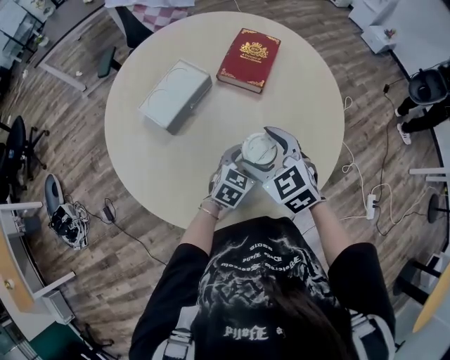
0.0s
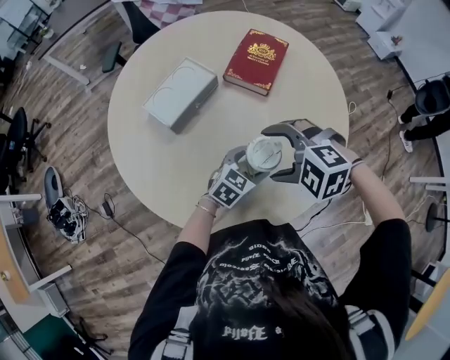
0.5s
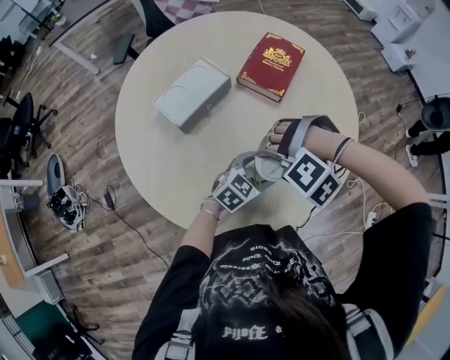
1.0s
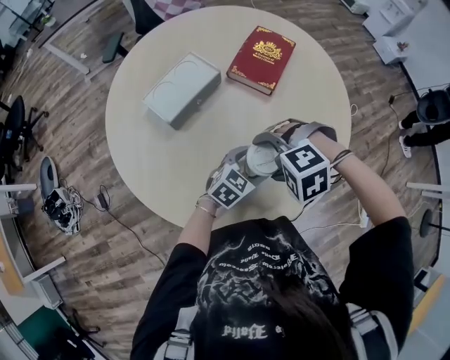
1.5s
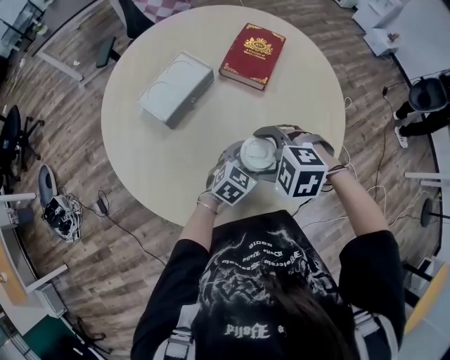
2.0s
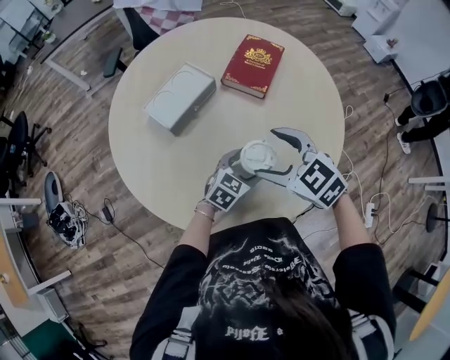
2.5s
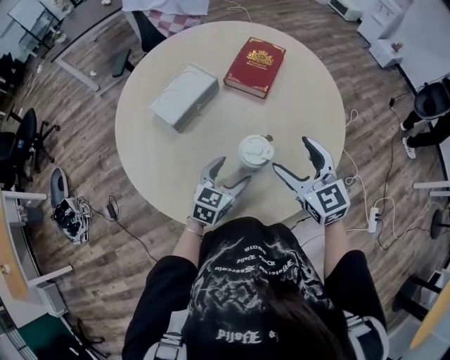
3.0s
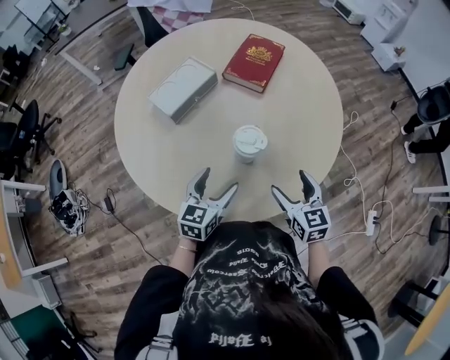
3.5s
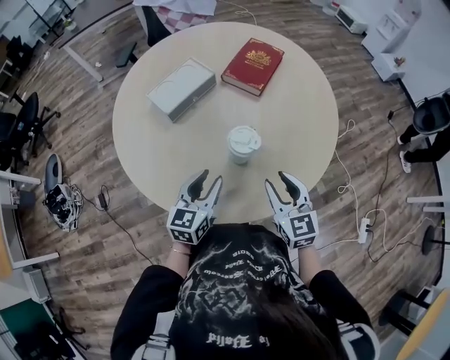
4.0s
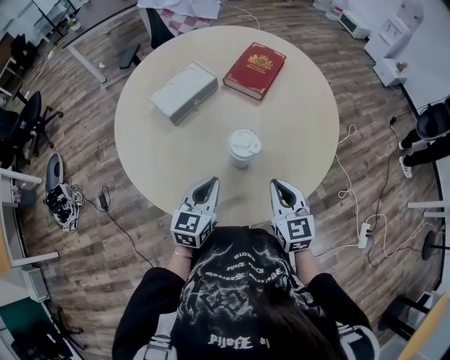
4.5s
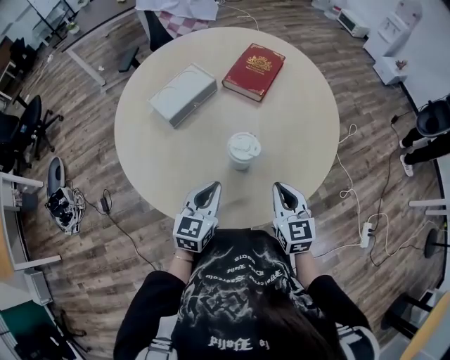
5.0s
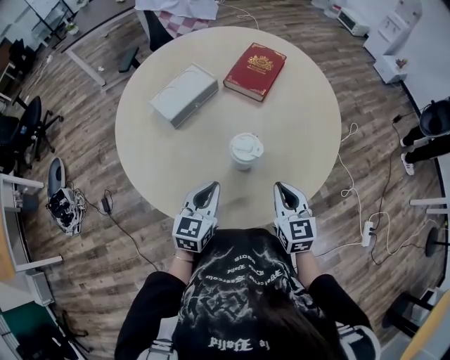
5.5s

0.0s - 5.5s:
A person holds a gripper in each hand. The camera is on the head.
0.0s - 2.0s: The right gripper rotates approximately 50 degrees.
2.0s - 3.5s: The left gripper travels backward, to the left and upward by about 15 cm, and swivels some 30 degrees; the right gripper heads to the right and backward, covering approximately 15 cm, and angles its fingers upward, by roughly 40 degrees.
3.5s - 5.5s: The left gripper closes; the right gripper closes.

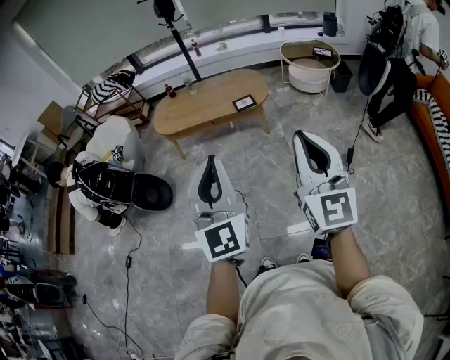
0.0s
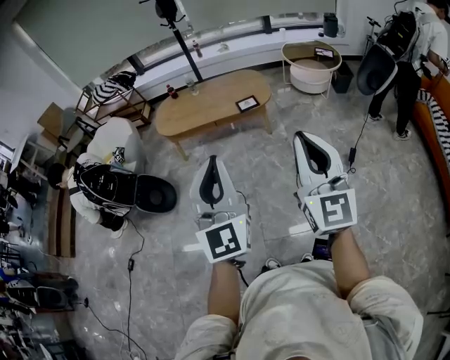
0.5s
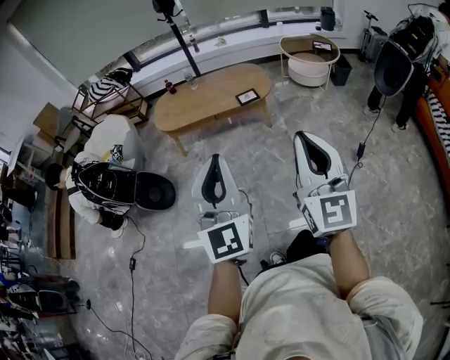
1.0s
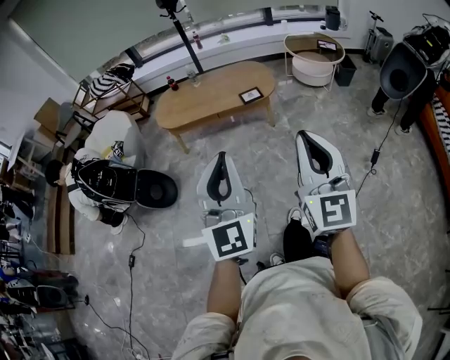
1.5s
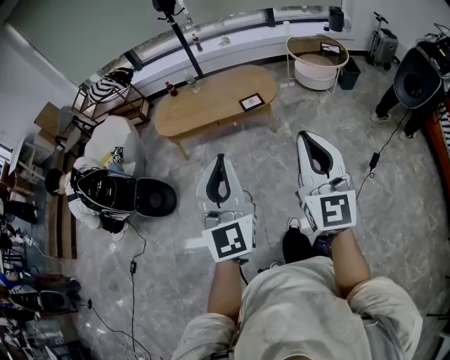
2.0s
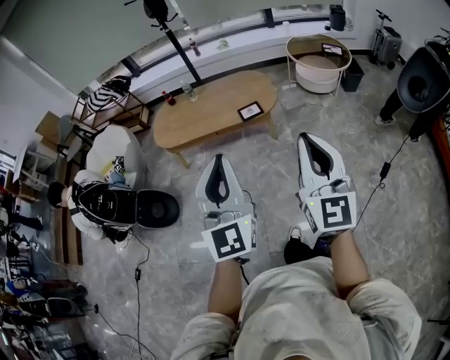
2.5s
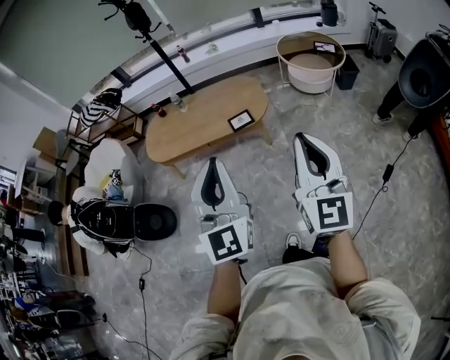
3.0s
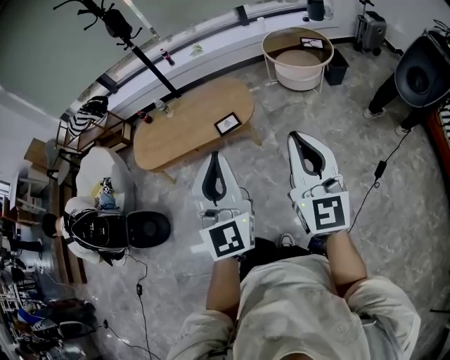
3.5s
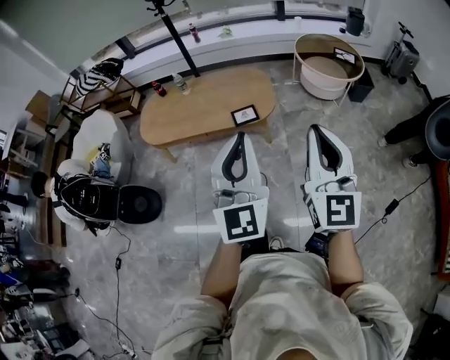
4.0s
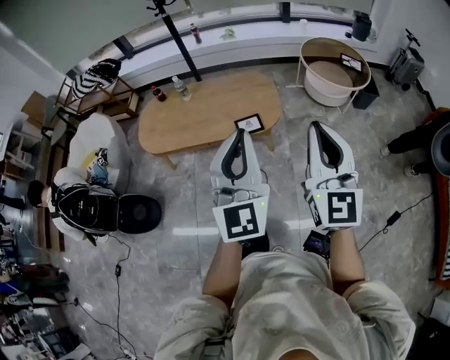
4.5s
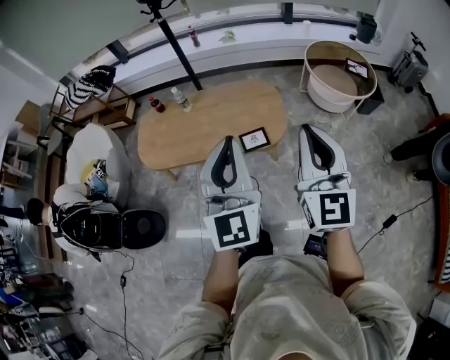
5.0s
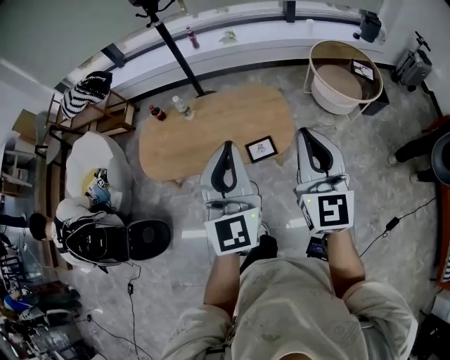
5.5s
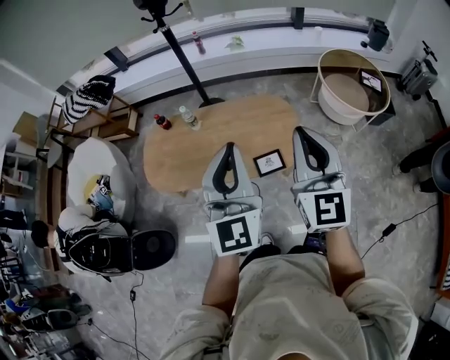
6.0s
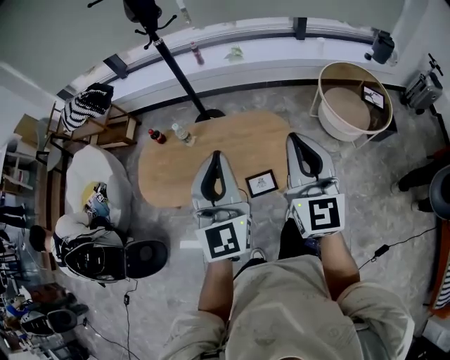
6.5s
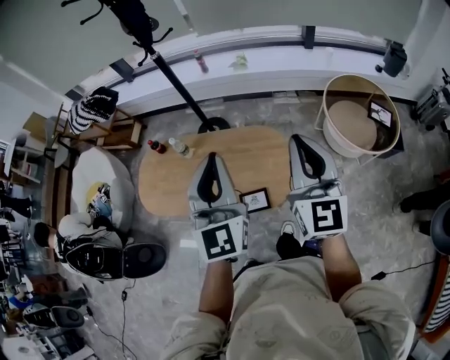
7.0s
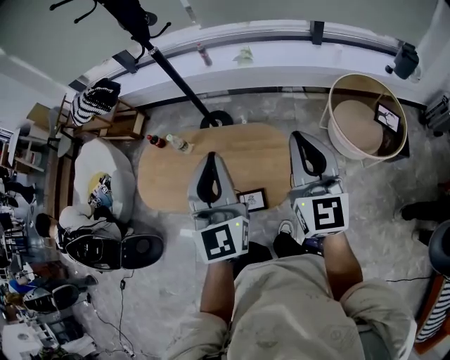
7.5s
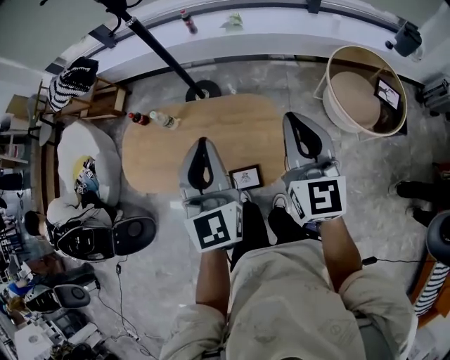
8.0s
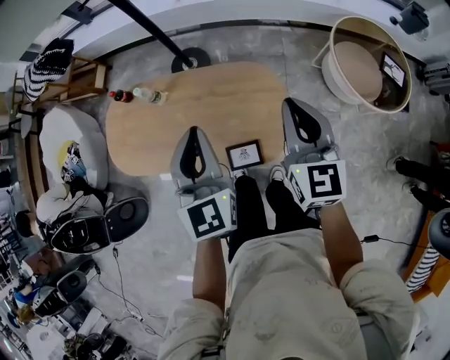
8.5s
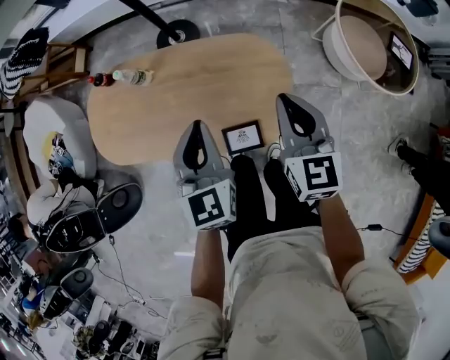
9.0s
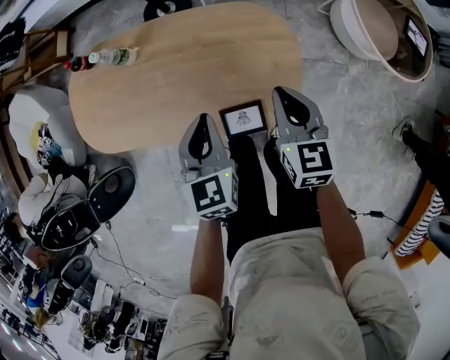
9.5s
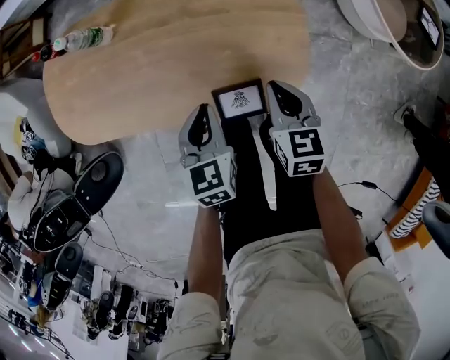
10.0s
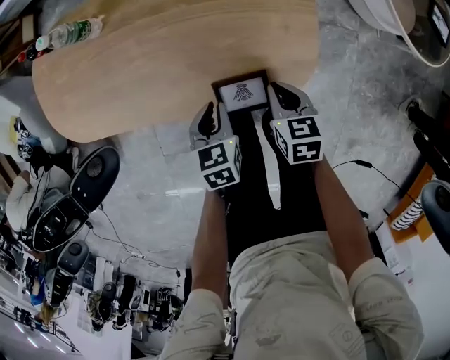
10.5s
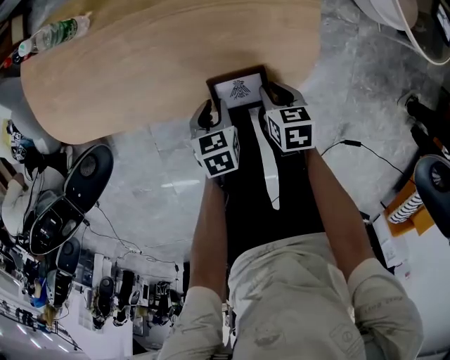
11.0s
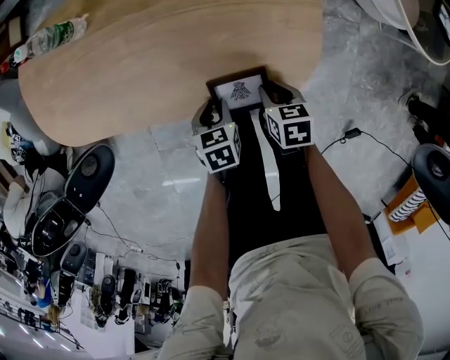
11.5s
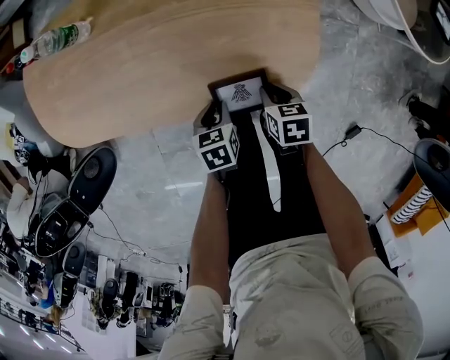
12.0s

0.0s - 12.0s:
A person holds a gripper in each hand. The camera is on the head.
0.0s - 2.0s: The grippers both shift forward by some 10 cm.
2.0s - 4.0s: Both grippers travel together forward and to the right, roughly 30 cm.
4.0s - 6.0s: The two grippers go approximately 40 cm forward and to the left.
6.0s - 8.0s: The two grippers go roughly 25 cm forward and to the right.
8.0s - 10.0s: Both grippers travel together downward, roughly 40 cm. The left gripper tips its fingers downward by roughly 40 degrees; the right gripper angles its fingers downward, by approximately 40 degrees.
10.0s - 12.0s: The two grippers go about 20 cm downward and backward. The right gripper rotates about 30 degrees; the left gripper turns by about 30 degrees.

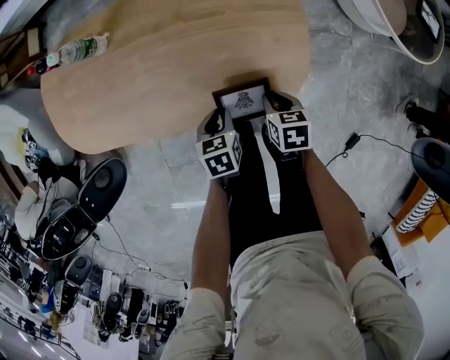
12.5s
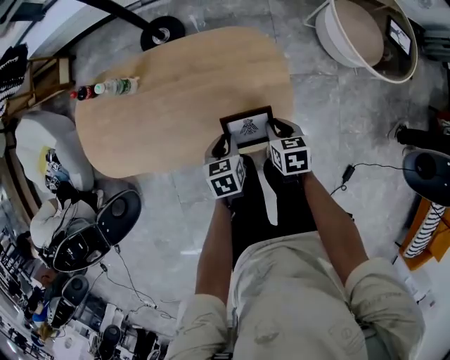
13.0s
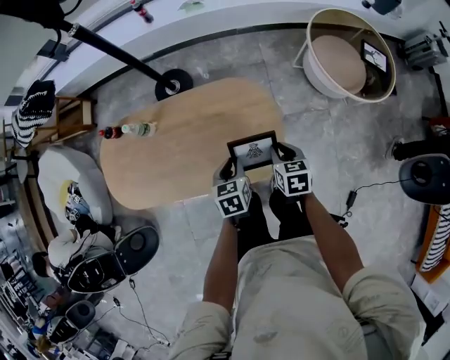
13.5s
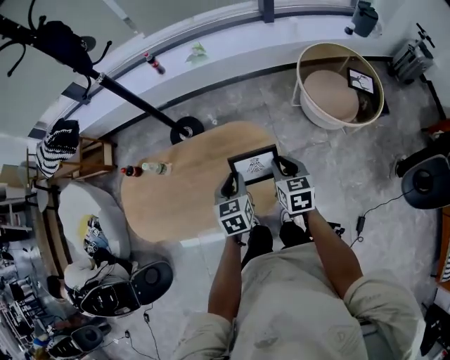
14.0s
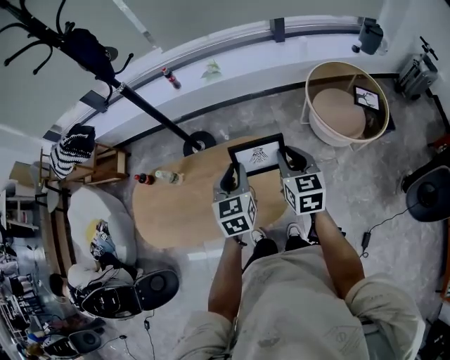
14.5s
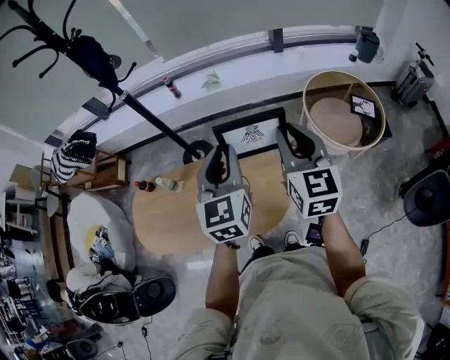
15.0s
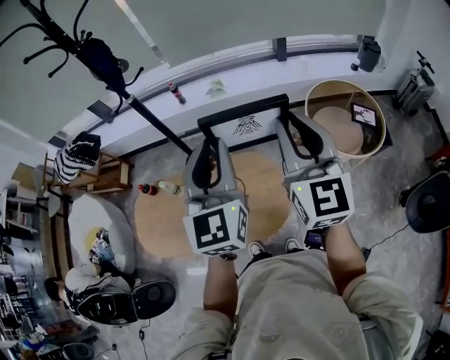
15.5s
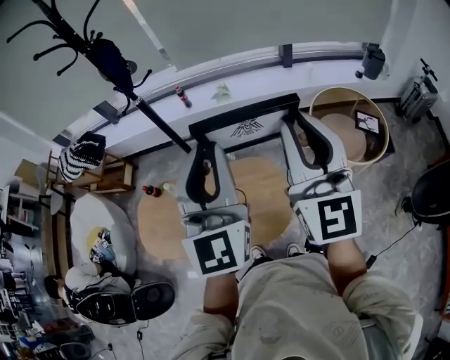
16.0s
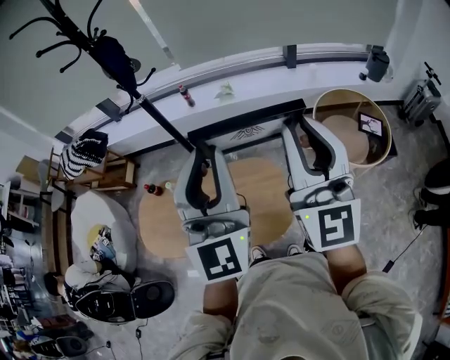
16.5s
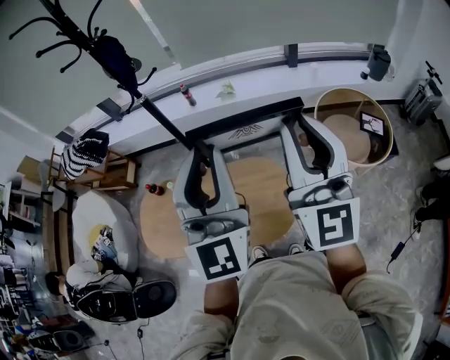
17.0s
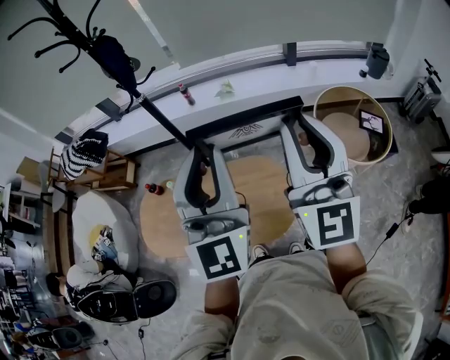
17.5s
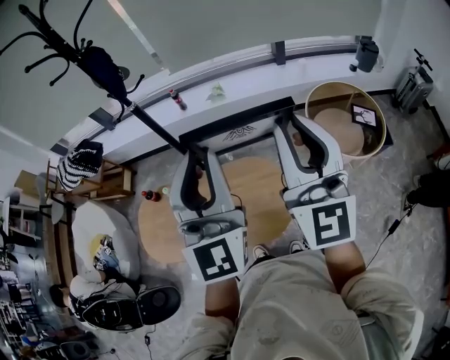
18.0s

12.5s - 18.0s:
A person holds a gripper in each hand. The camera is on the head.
12.5s - 14.5s: Both grippers move upward, about 40 cm. The right gripper tilts its fingers roughly 40 degrees upward, while the left gripper angles its fingers upward, by some 40 degrees.
14.5s - 16.0s: Both grippers move upward, roughly 30 cm. The right gripper tilts its fingers about 40 degrees upward. Meanwhile the left gripper tips its fingers upward by some 40 degrees.
16.0s - 18.0s: The grippers make only small movements.

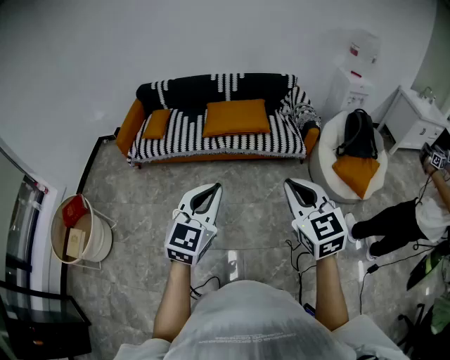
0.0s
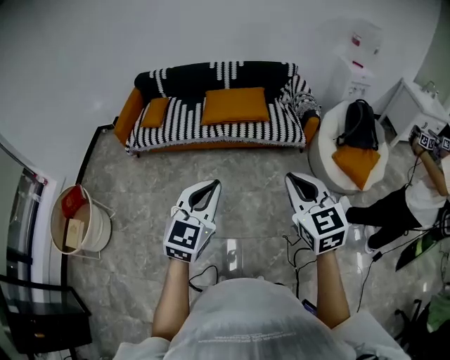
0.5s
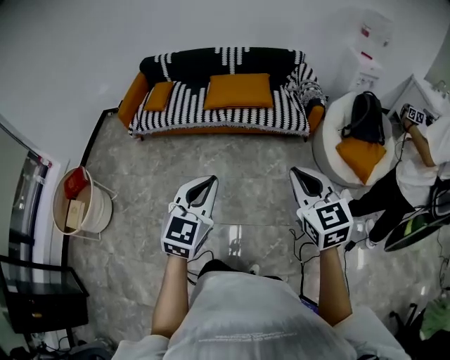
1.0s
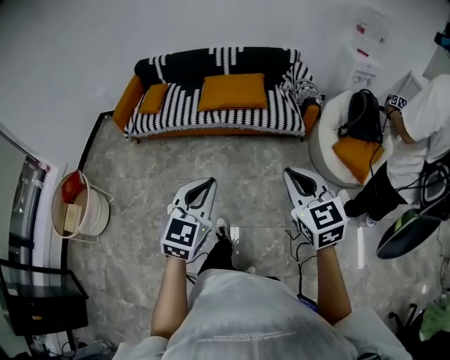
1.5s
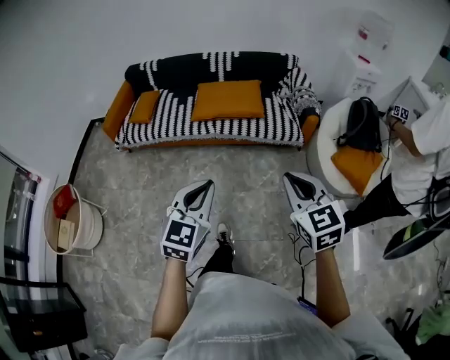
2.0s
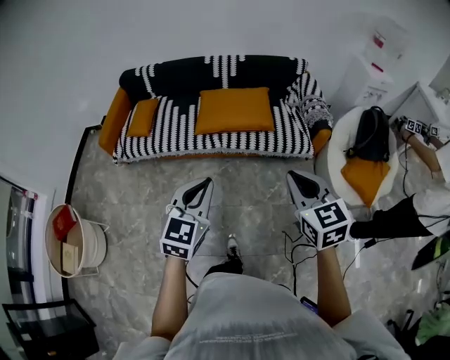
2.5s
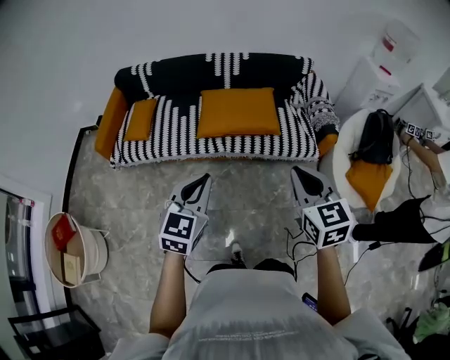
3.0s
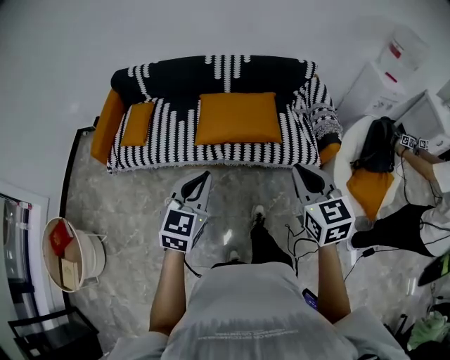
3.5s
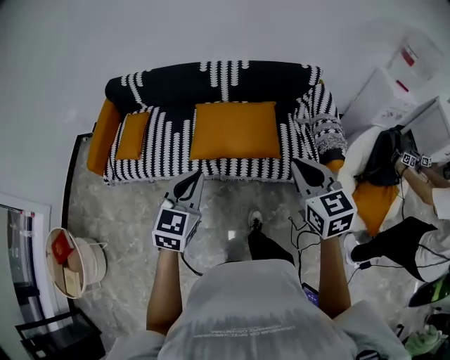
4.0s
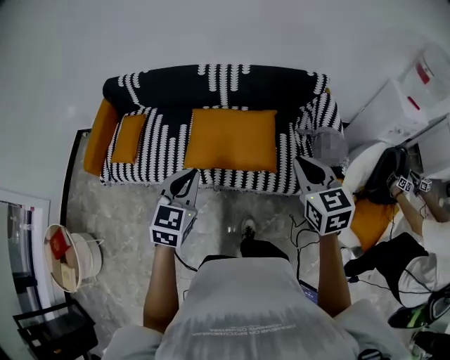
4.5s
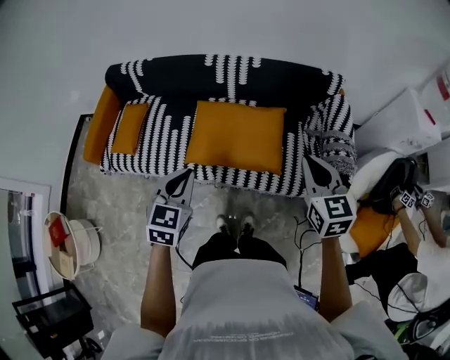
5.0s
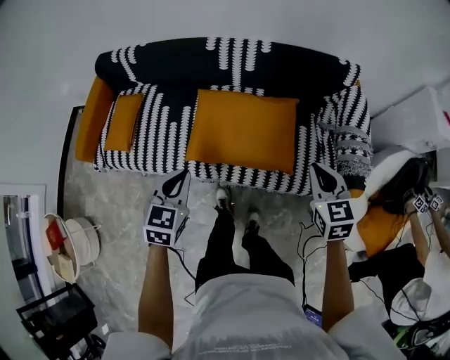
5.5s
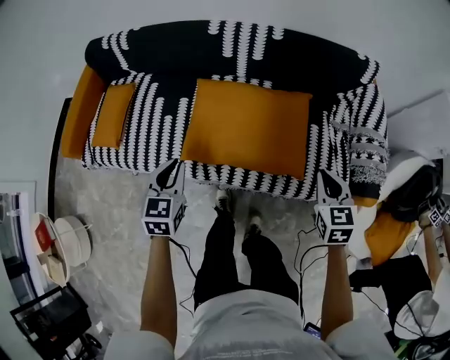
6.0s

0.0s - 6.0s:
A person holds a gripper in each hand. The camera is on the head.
0.0s - 2.0s: The left gripper is displaced forward, downward and to the right by roughly 15 cm. The right gripper moves forward, to the right and downward, some 15 cm.
2.0s - 4.0s: Both grippers are carried forward, approximately 50 cm.
4.0s - 6.0s: The two grippers go about 40 cm downward and forward. The left gripper turns by some 20 degrees.
